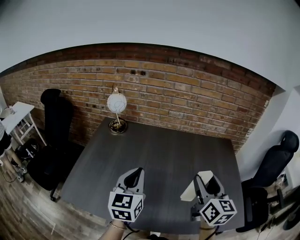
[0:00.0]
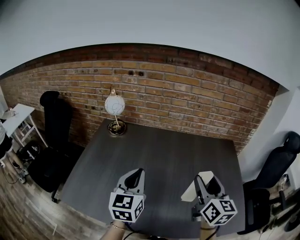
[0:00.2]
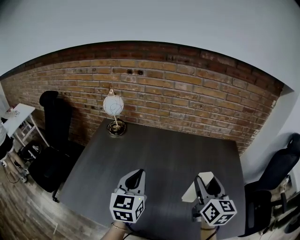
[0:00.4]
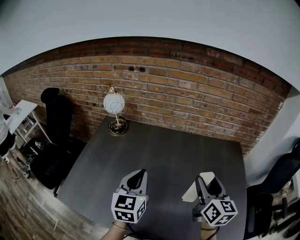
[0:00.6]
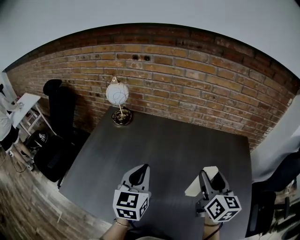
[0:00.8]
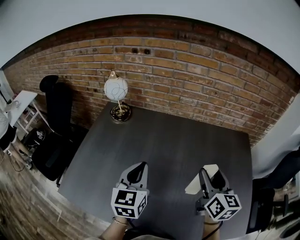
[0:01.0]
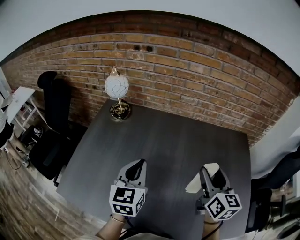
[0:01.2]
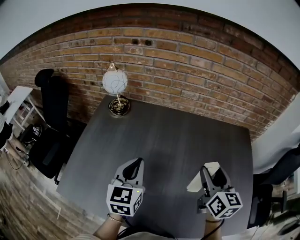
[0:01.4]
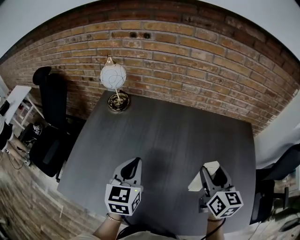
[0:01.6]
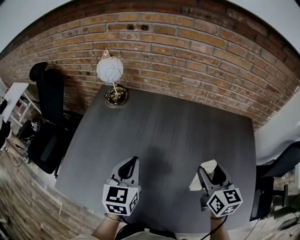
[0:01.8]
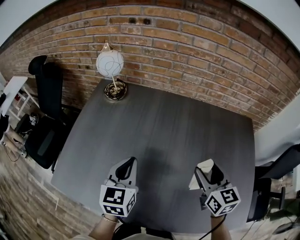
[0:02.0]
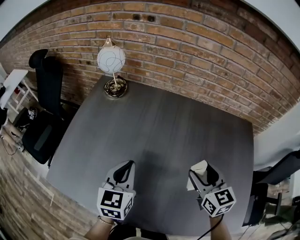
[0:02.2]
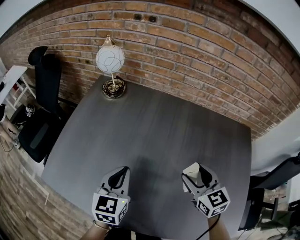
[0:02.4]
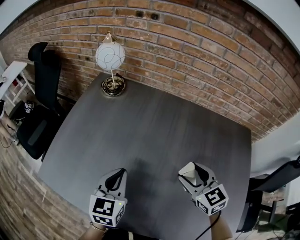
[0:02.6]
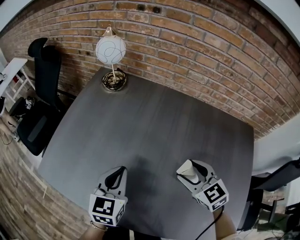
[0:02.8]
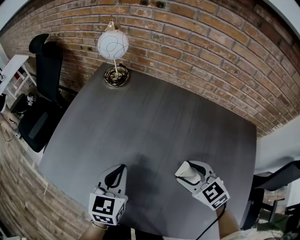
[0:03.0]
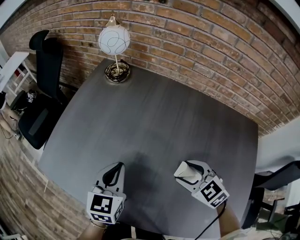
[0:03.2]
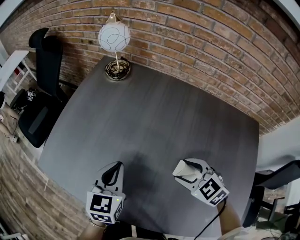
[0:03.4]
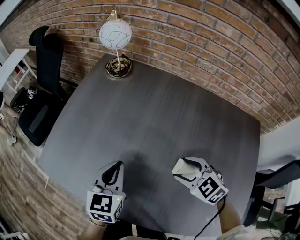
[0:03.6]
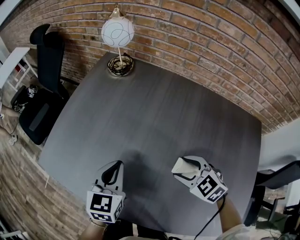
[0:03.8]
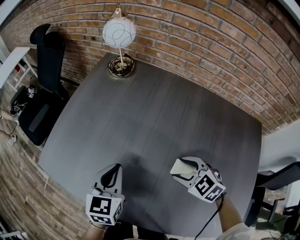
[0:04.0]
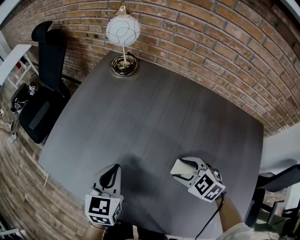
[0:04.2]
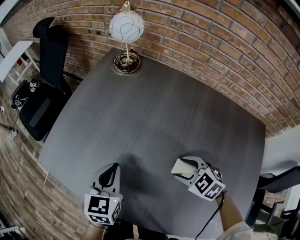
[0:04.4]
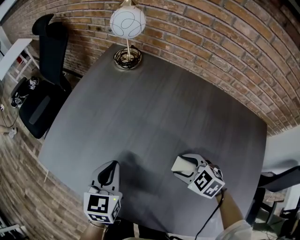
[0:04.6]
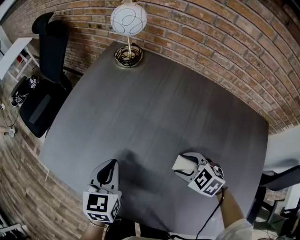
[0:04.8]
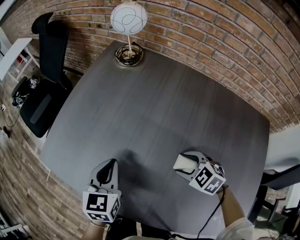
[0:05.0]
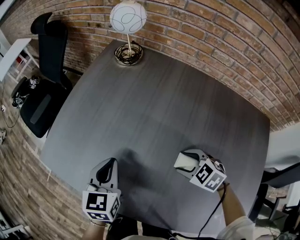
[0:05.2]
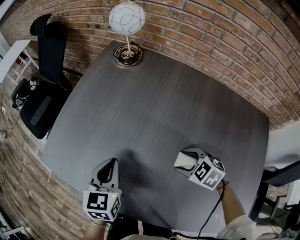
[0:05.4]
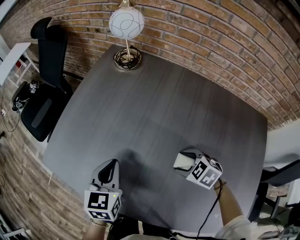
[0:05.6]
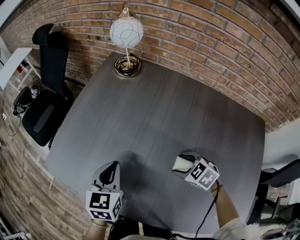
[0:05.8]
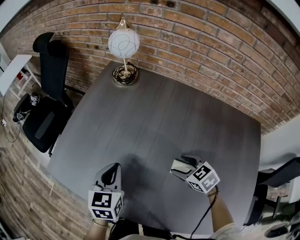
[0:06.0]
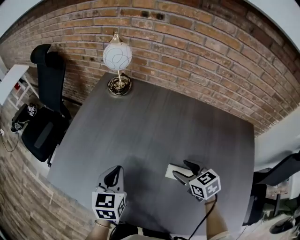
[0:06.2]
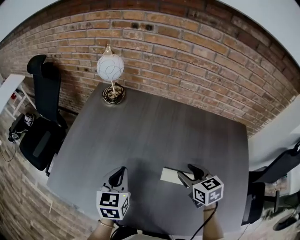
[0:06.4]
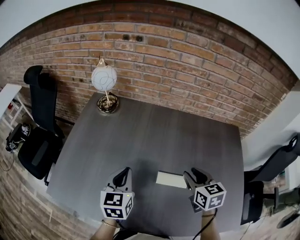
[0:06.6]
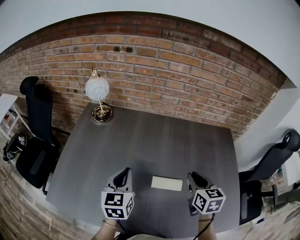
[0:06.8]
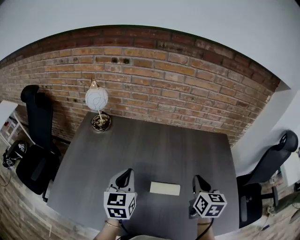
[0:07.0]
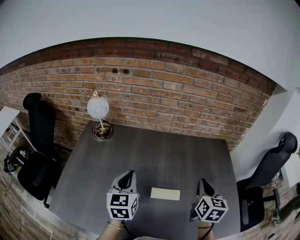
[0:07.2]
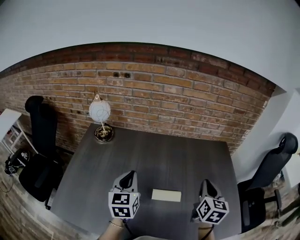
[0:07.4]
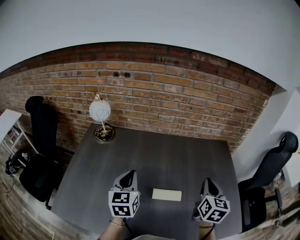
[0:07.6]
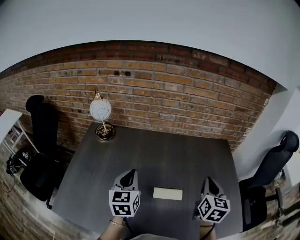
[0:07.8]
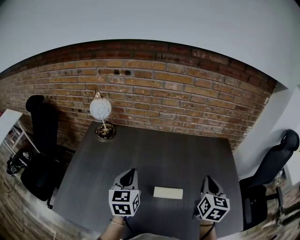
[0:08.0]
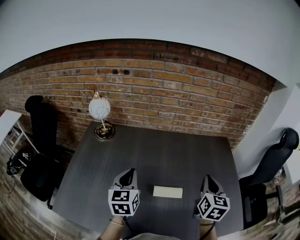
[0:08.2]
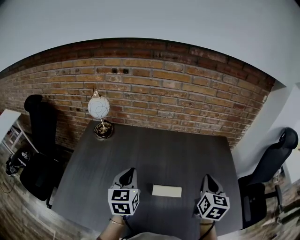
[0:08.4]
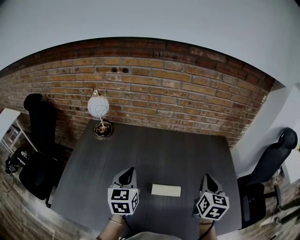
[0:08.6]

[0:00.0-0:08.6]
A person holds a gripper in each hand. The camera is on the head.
0.0 to 1.4 s: The two grippers go about 10 cm forward and downward.
1.4 to 2.8 s: The left gripper heads downward, covering about 10 cm. The right gripper is displaced downward and to the left by roughly 15 cm, and changes its angle by about 60 degrees.
2.8 to 4.4 s: The left gripper heads to the left, covering roughly 5 cm. The right gripper shifts about 10 cm downward and to the left, and turns by approximately 30 degrees.
4.4 to 5.8 s: There are only small adjustments of the grippers.
5.8 to 7.2 s: The right gripper heads upward, covering about 25 cm, angles its fingers upward, by about 40 degrees, and closes up. Meanwhile the left gripper moves roughly 20 cm, and turns by some 20 degrees.
7.2 to 8.6 s: The grippers make only small movements.

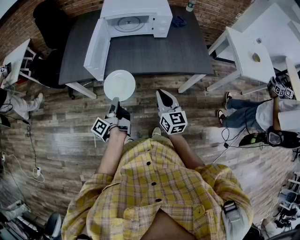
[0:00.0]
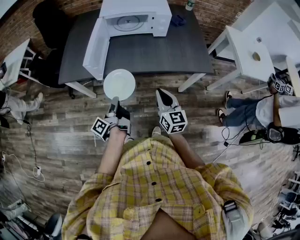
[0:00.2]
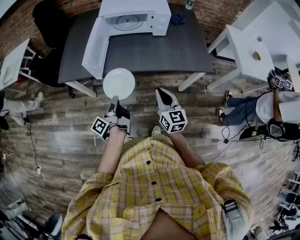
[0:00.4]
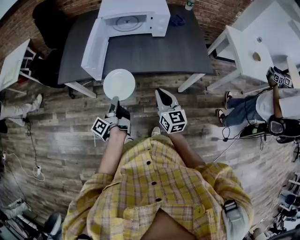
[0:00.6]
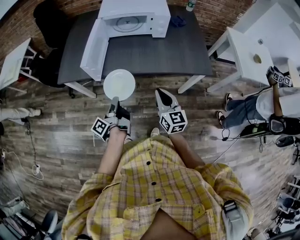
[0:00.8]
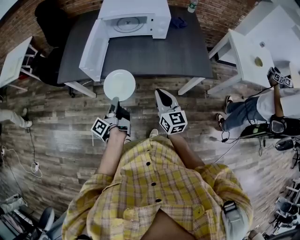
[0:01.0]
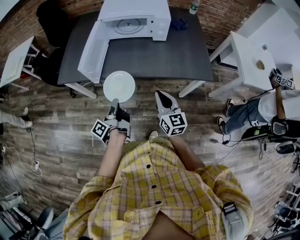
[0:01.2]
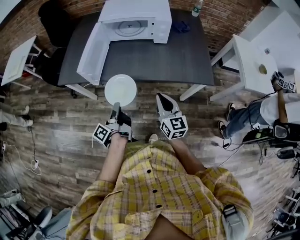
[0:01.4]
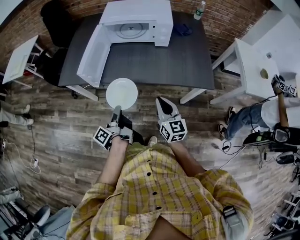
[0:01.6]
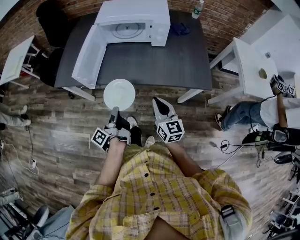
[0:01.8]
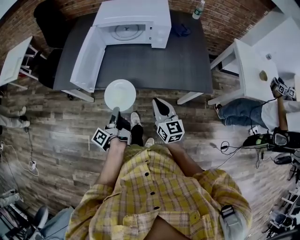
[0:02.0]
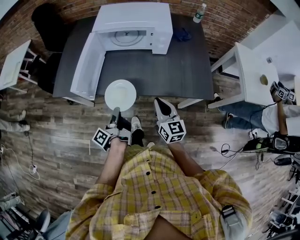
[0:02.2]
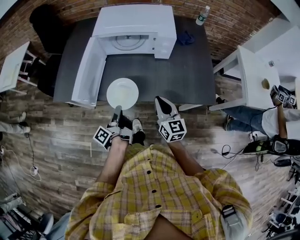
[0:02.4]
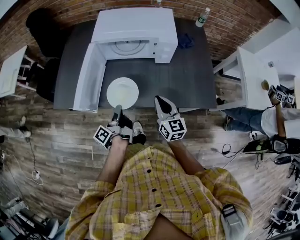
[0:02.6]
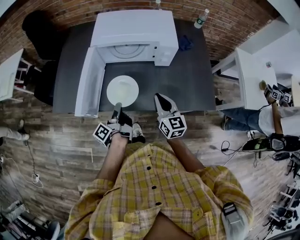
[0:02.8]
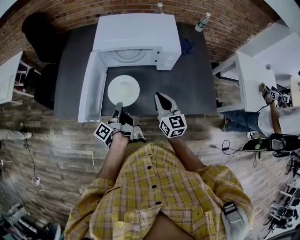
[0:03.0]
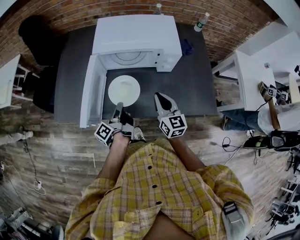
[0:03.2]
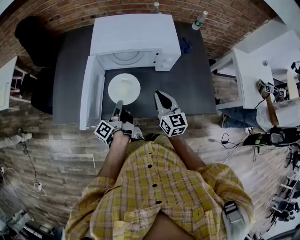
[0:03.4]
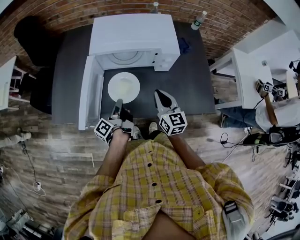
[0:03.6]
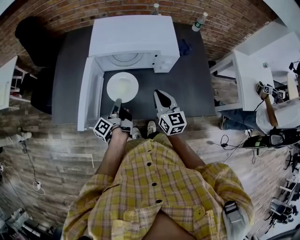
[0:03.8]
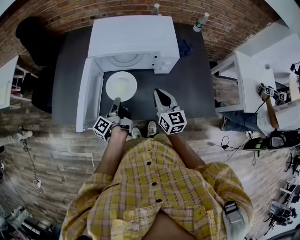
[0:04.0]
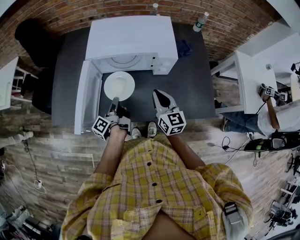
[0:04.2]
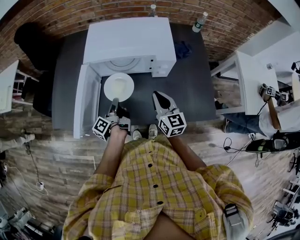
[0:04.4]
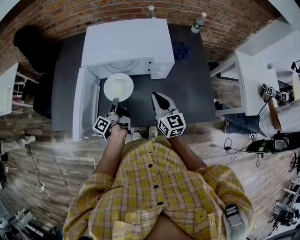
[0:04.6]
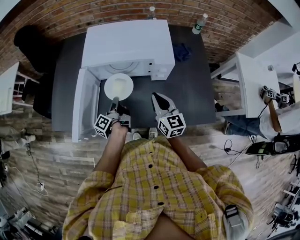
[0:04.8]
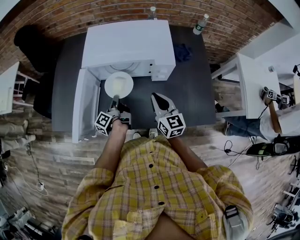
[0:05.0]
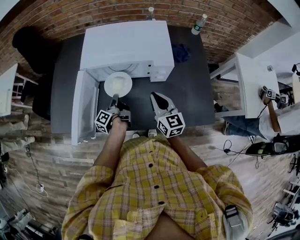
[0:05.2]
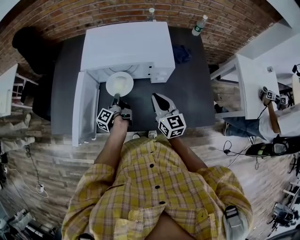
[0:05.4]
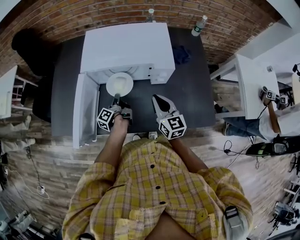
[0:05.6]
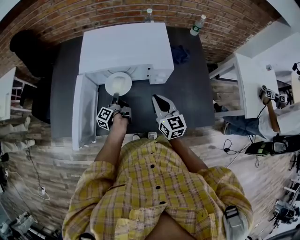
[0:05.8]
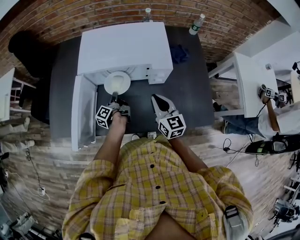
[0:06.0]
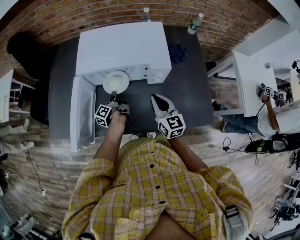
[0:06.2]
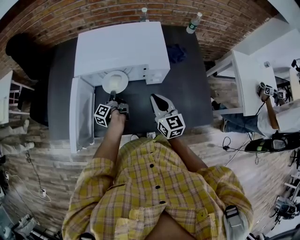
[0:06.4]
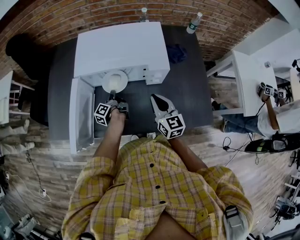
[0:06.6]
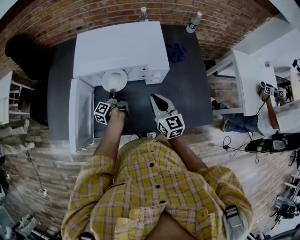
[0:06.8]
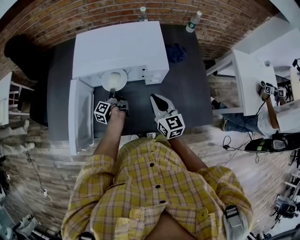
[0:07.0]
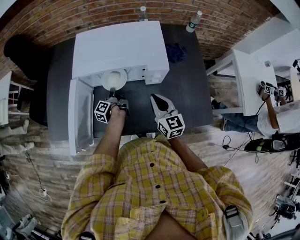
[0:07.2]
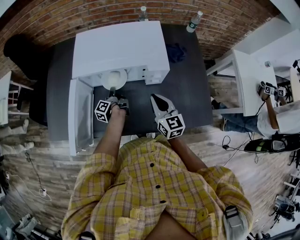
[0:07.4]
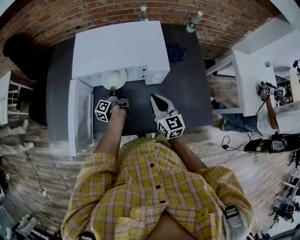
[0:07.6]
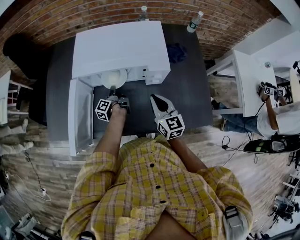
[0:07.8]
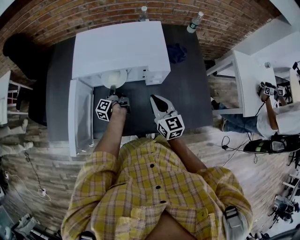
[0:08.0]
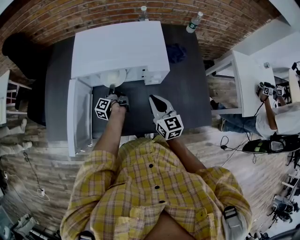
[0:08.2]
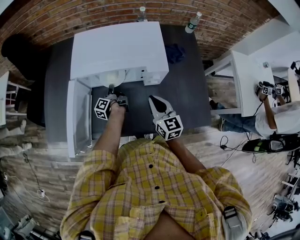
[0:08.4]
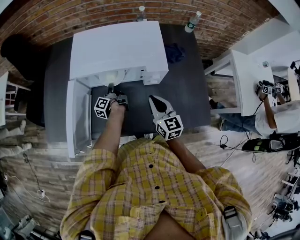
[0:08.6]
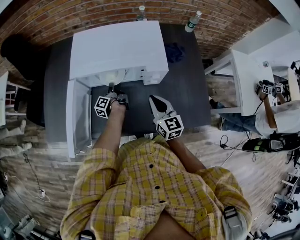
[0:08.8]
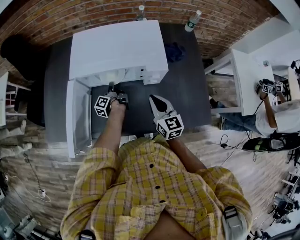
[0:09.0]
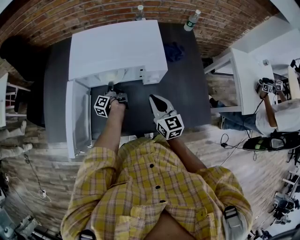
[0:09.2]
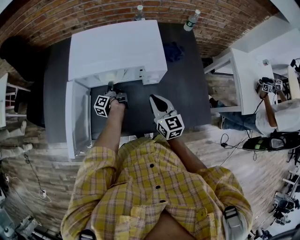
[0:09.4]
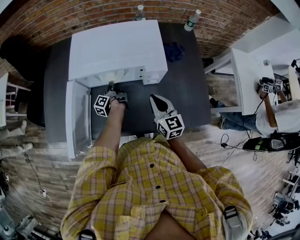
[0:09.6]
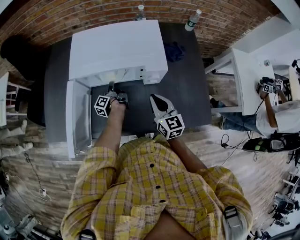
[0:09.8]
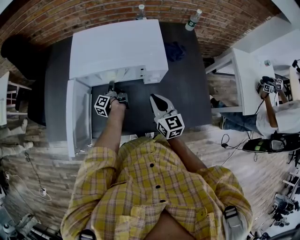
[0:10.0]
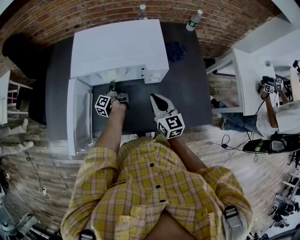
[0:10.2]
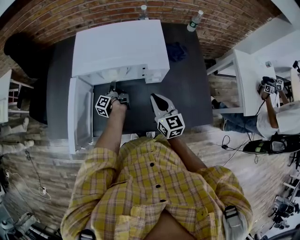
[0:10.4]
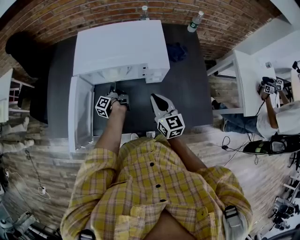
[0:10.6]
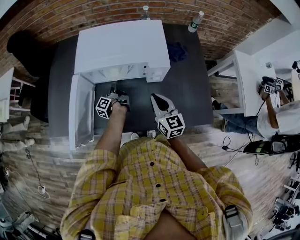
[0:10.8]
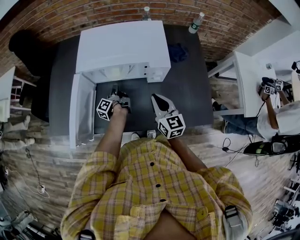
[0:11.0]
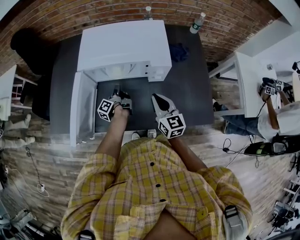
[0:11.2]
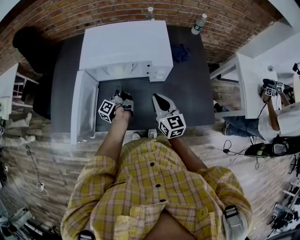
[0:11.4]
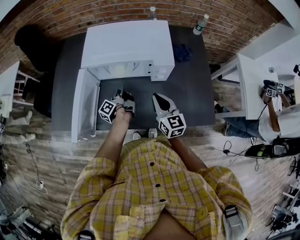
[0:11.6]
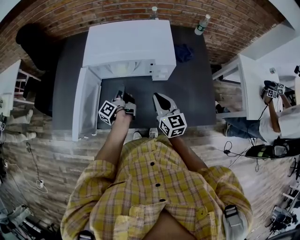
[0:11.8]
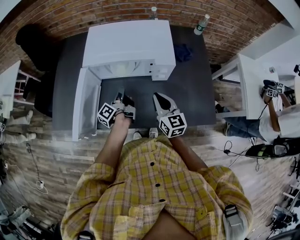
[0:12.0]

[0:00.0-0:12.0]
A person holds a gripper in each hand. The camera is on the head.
0.0 to 1.6 s: The right gripper shifts by some 10 cm.
1.6 to 3.0 s: The right gripper shifts by approximately 25 cm.
3.0 to 4.4 s: The right gripper shifts by roughly 5 cm.

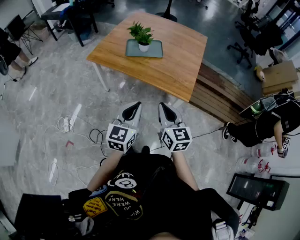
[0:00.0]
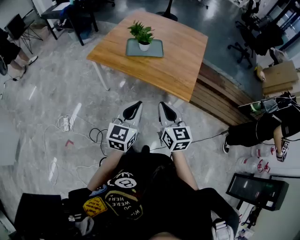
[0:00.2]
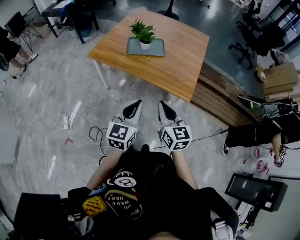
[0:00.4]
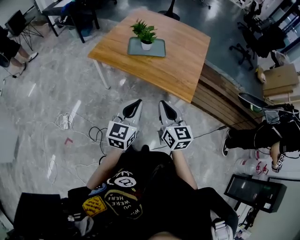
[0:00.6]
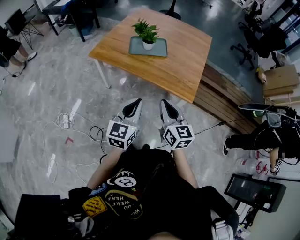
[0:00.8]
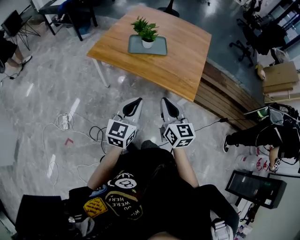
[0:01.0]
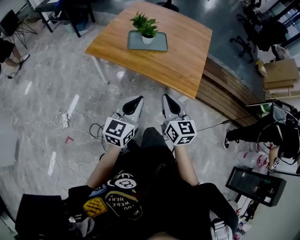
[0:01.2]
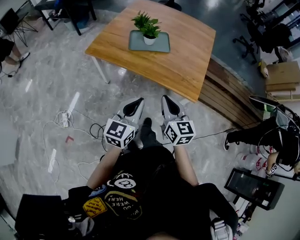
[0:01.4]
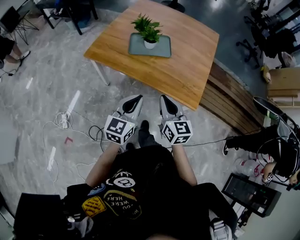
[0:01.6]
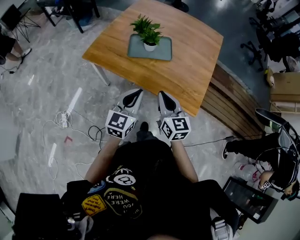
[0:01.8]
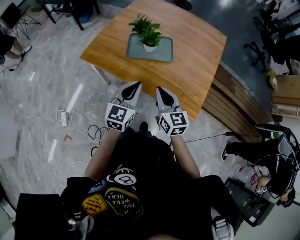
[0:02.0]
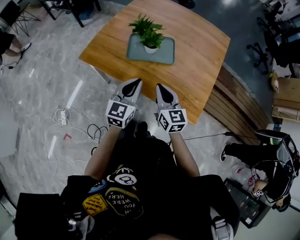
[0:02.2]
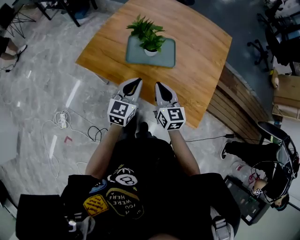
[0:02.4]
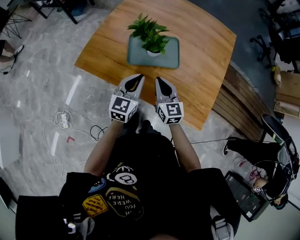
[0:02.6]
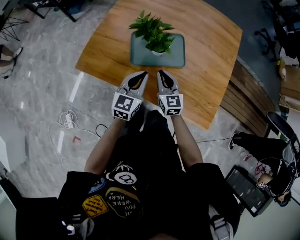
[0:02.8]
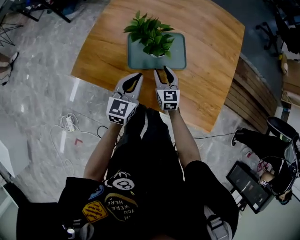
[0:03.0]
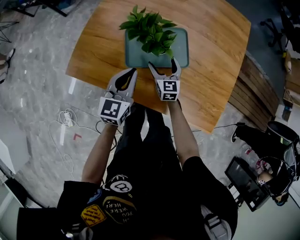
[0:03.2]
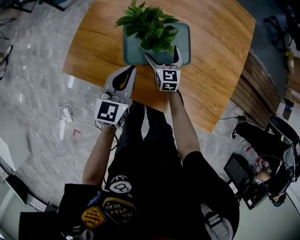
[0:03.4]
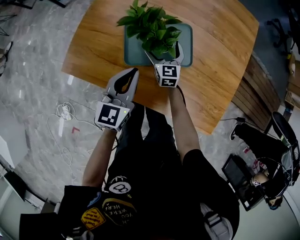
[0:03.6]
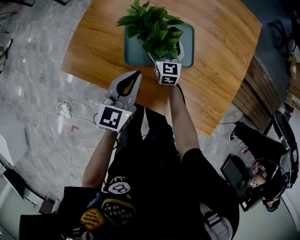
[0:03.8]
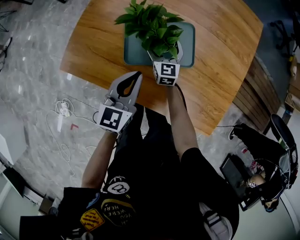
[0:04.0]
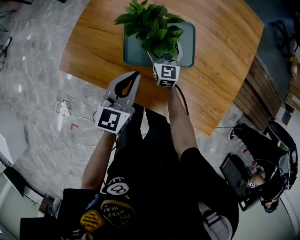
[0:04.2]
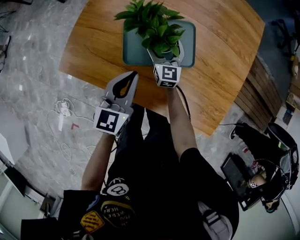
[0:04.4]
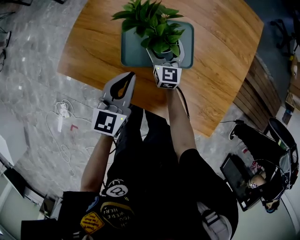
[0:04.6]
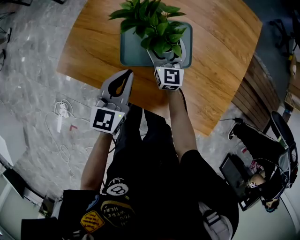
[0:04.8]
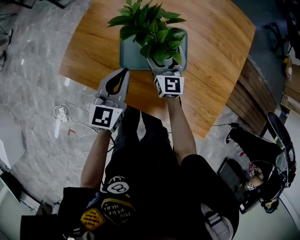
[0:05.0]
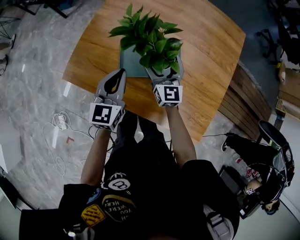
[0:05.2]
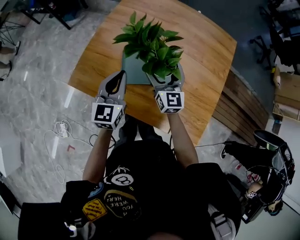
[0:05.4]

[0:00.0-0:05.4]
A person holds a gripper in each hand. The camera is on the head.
0.0 to 1.4 s: The grippers both shift forward by roughly 10 cm.
1.4 to 2.8 s: The pair of grippers is taken forward, some 40 cm. The right gripper heads downward, covering some 15 cm.
2.8 to 4.0 s: The right gripper moves forward and downward, some 20 cm, and opens up, while the left gripper is displaced forward by roughly 5 cm.
4.0 to 5.4 s: The right gripper is displaced upward by some 25 cm; the left gripper moves upward, about 10 cm.
